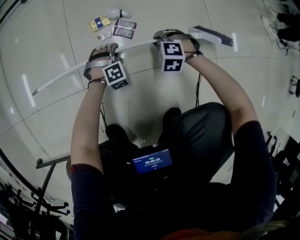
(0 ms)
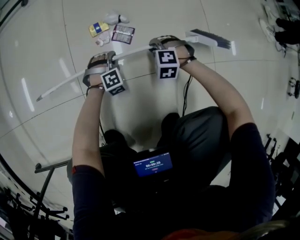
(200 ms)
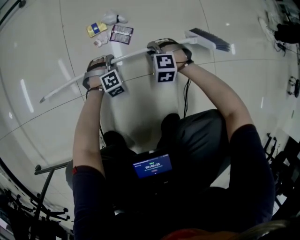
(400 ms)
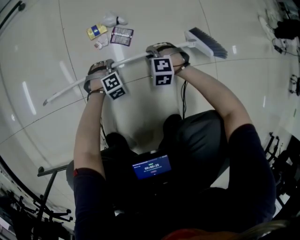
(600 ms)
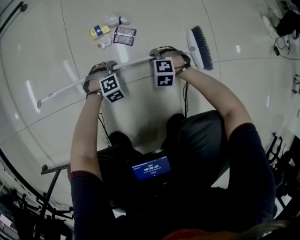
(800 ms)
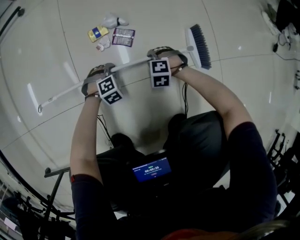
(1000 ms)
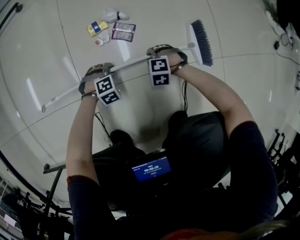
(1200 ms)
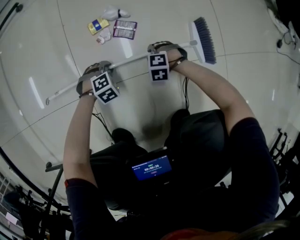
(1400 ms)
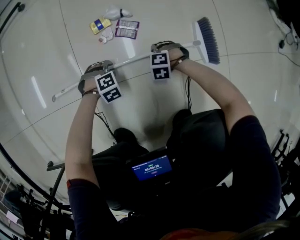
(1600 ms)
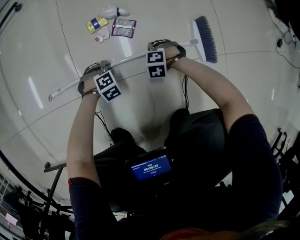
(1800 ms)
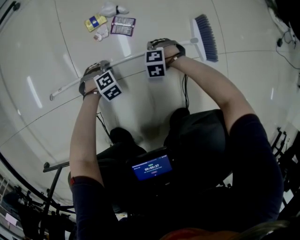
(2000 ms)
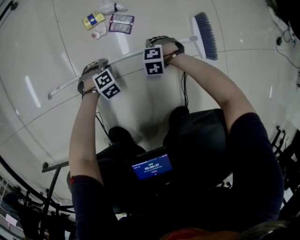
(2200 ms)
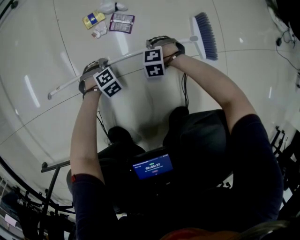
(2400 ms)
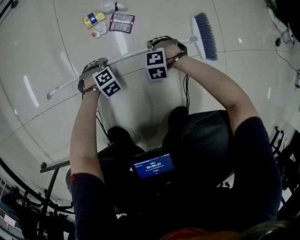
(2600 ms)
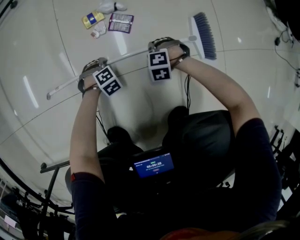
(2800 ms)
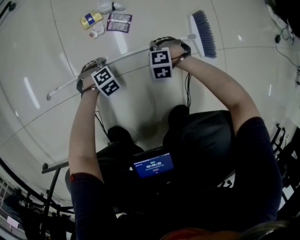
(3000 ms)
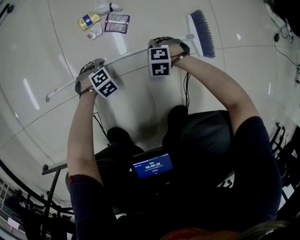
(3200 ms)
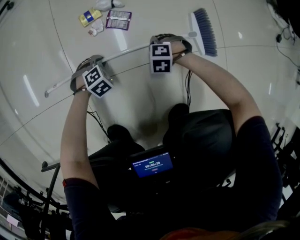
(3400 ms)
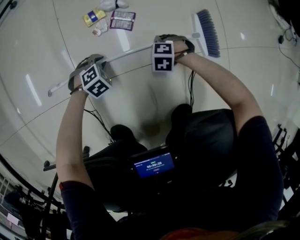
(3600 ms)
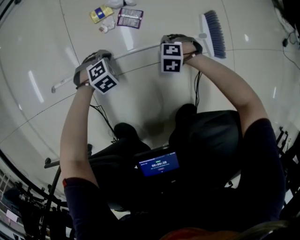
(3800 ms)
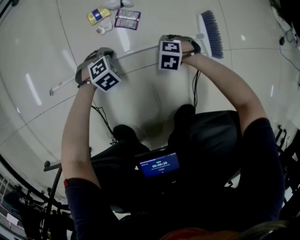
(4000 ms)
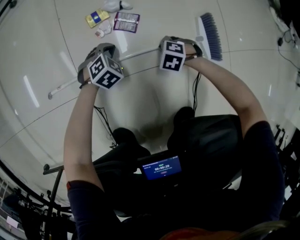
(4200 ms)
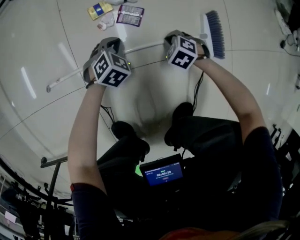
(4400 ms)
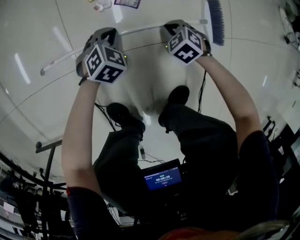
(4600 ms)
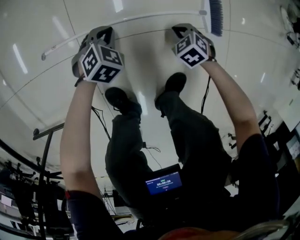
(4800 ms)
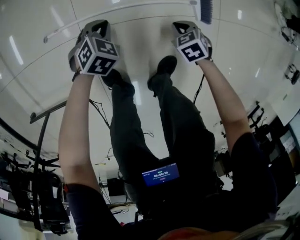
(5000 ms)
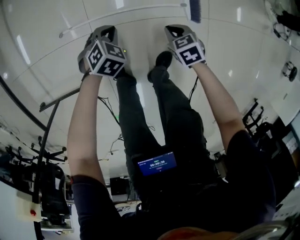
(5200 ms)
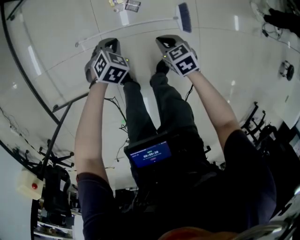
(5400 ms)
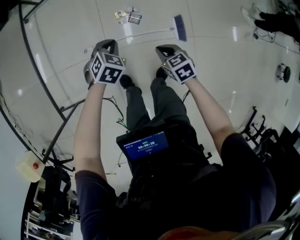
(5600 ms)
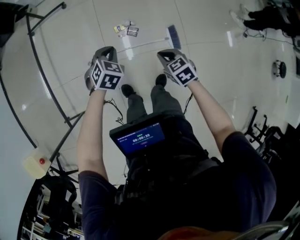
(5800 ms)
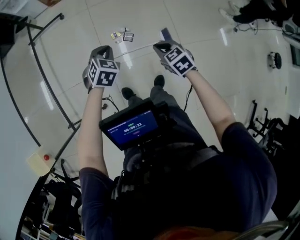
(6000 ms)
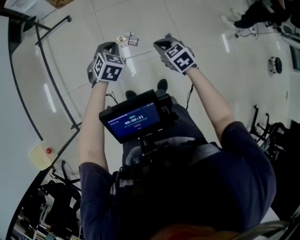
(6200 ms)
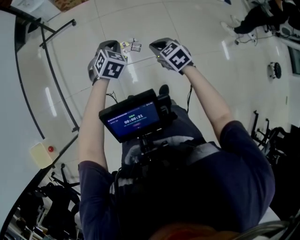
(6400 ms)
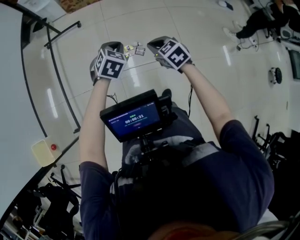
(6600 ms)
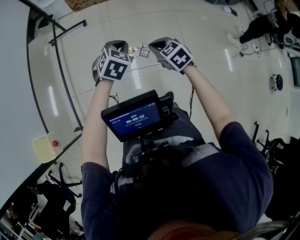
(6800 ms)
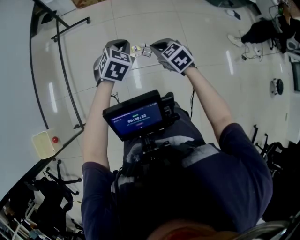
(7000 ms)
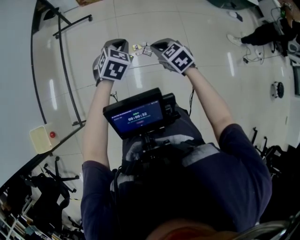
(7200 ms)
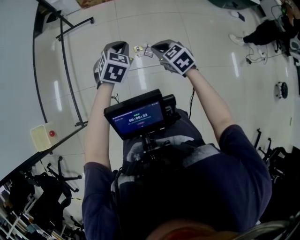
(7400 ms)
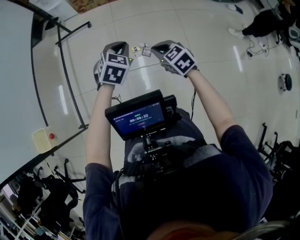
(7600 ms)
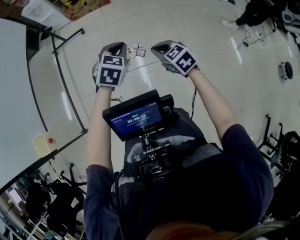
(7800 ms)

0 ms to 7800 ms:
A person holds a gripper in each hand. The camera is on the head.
0 ms to 1600 ms: The right gripper travels downward by some 10 cm. Meanwhile the left gripper changes place by roughly 10 cm, and changes its angle by approximately 20 degrees.
1600 ms to 3200 ms: There are only small adjustments of the grippers.
3200 ms to 4600 ms: The left gripper is displaced upward by about 10 cm, and swivels about 30 degrees. Meanwhile the right gripper moves some 5 cm, and swivels some 30 degrees.
4600 ms to 6200 ms: Both grippers move upward, approximately 70 cm. The right gripper swivels approximately 30 degrees.
6200 ms to 7800 ms: The right gripper moves upward and backward, roughly 15 cm, and goes to the left and returns, roughly 10 cm each way. The left gripper swings up and down, about 15 cm each way, with 2 reversals.

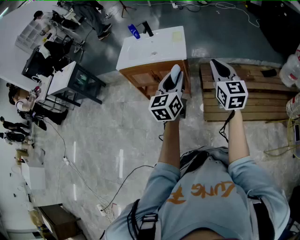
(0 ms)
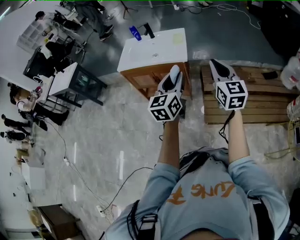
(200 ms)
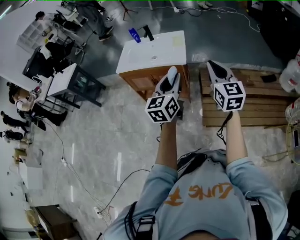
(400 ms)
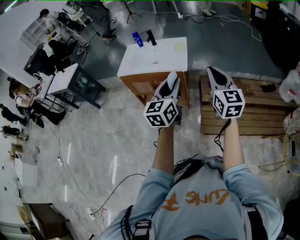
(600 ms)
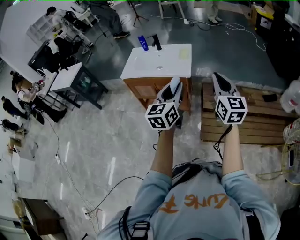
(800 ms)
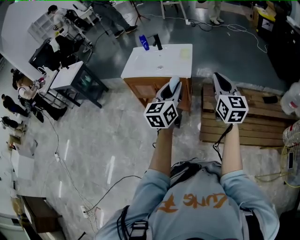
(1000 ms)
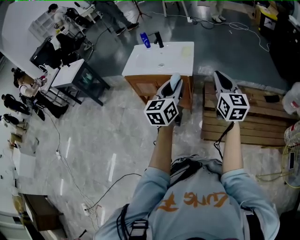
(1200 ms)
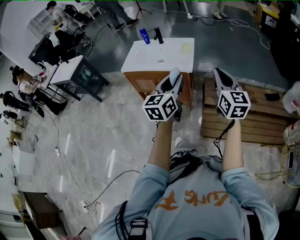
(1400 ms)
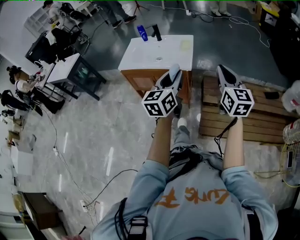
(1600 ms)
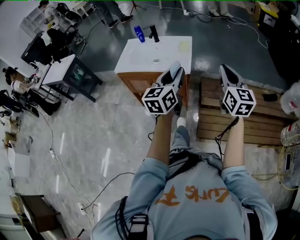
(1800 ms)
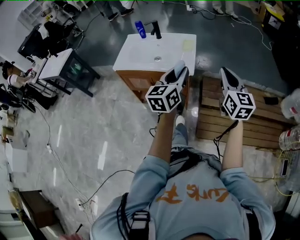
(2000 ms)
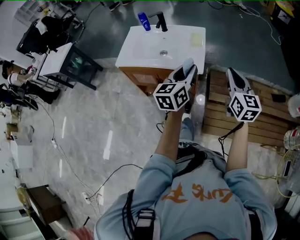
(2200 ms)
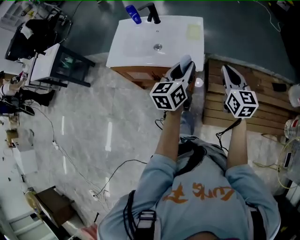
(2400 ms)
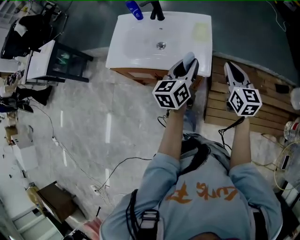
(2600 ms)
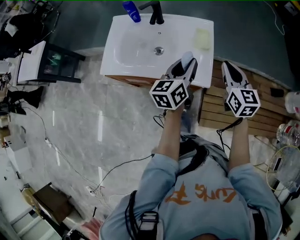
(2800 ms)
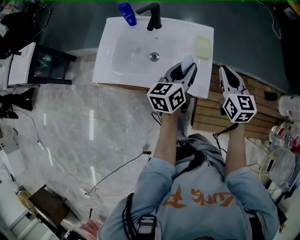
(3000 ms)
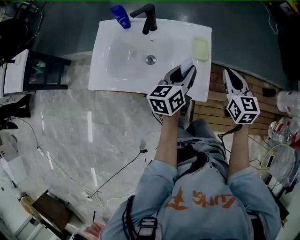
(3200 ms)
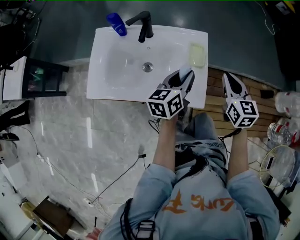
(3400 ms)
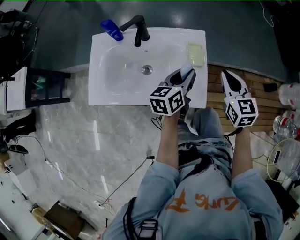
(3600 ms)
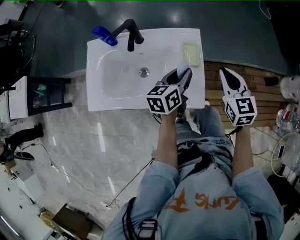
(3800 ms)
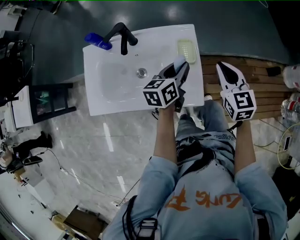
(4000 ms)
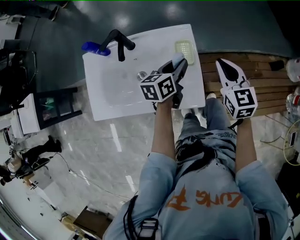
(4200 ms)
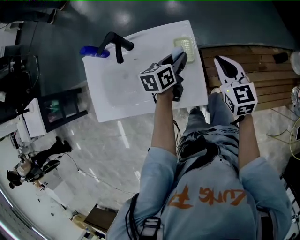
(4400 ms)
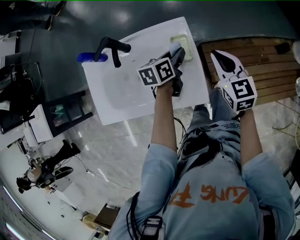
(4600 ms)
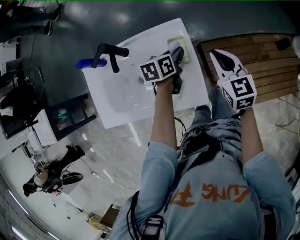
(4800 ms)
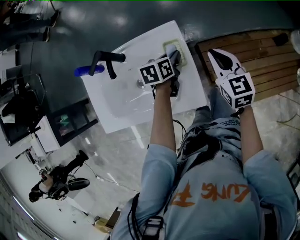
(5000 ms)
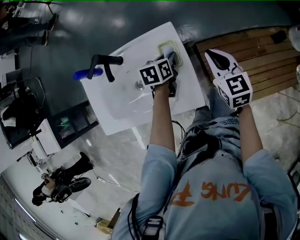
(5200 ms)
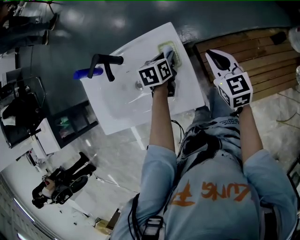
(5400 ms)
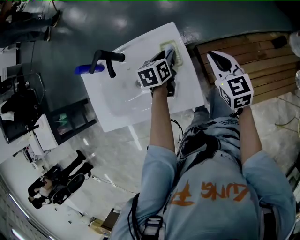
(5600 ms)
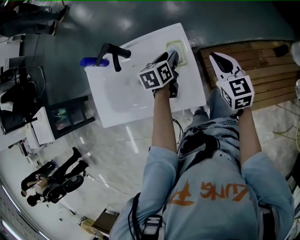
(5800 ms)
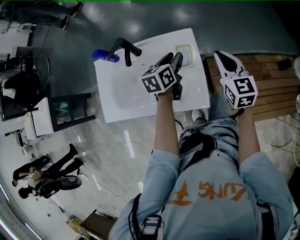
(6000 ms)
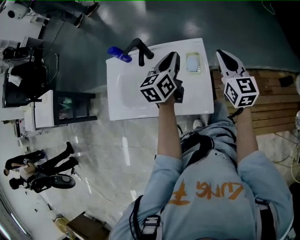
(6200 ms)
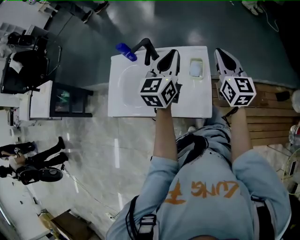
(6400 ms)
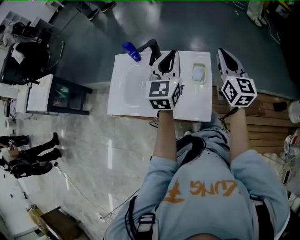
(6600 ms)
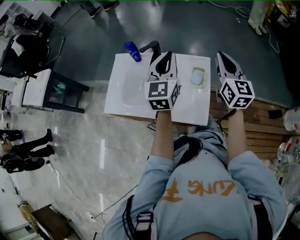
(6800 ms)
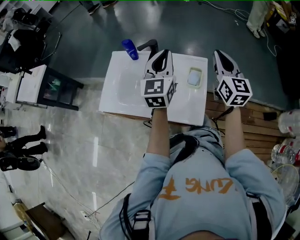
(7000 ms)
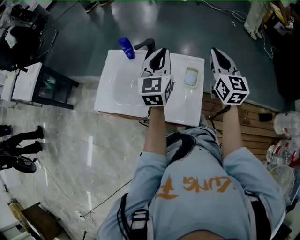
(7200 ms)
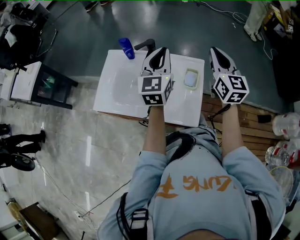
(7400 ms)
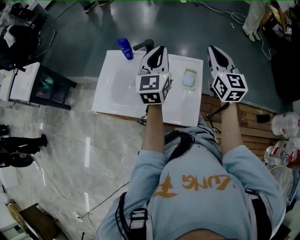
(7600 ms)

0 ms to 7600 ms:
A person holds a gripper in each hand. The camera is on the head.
0 ms to 1600 ms: Both grippers move forward, approximately 5 cm.
1600 ms to 3000 ms: The pair of grippers is taken forward, about 40 cm. The left gripper rotates roughly 30 degrees, while the right gripper swivels about 20 degrees.
3000 ms to 4600 ms: The left gripper shifts approximately 20 cm forward and downward, and swivels approximately 30 degrees. Meanwhile the right gripper goes some 10 cm forward and downward.
4600 ms to 6000 ms: The left gripper shifts roughly 5 cm upward.
6000 ms to 7600 ms: The left gripper heads upward and to the left, covering roughly 20 cm, rotates about 50 degrees, and closes its fingers. The right gripper heads upward, to the left and forward, covering roughly 20 cm, and turns by about 20 degrees.

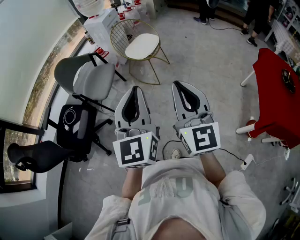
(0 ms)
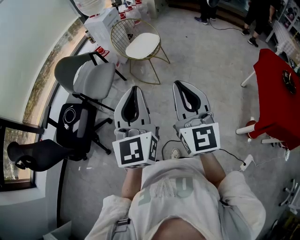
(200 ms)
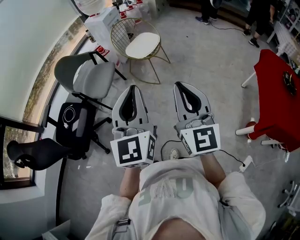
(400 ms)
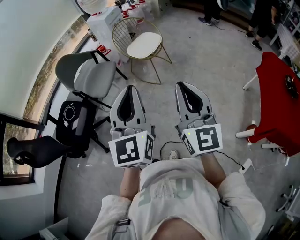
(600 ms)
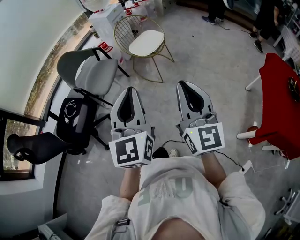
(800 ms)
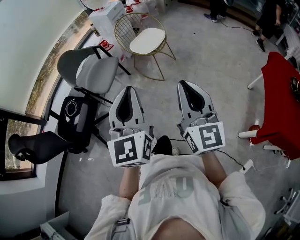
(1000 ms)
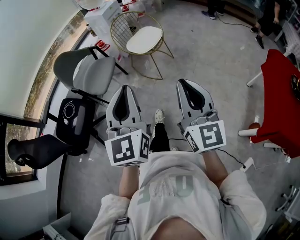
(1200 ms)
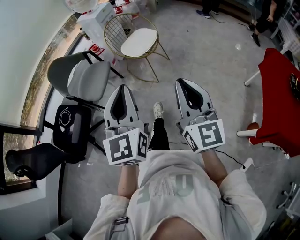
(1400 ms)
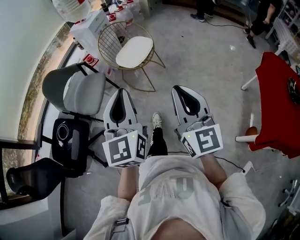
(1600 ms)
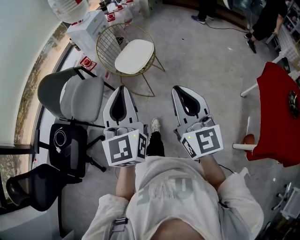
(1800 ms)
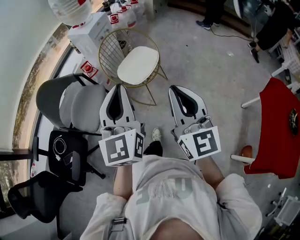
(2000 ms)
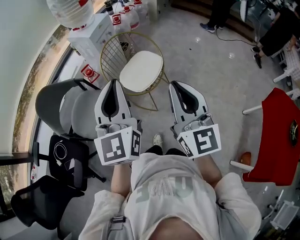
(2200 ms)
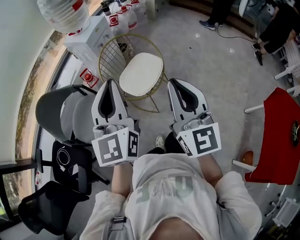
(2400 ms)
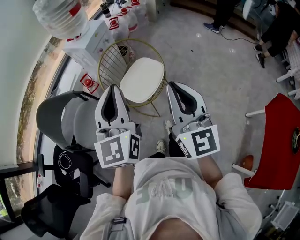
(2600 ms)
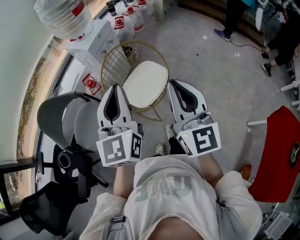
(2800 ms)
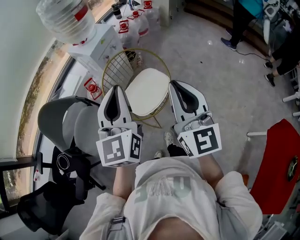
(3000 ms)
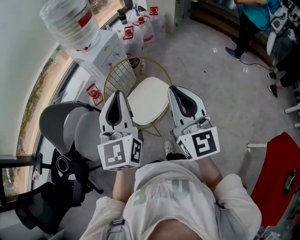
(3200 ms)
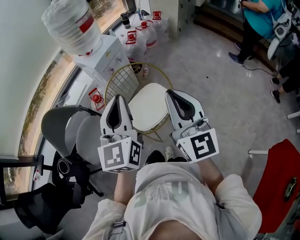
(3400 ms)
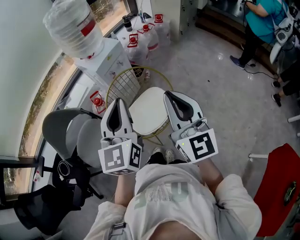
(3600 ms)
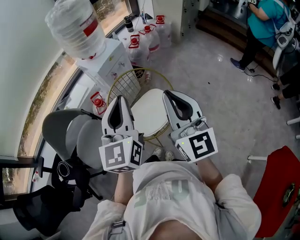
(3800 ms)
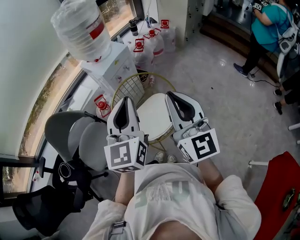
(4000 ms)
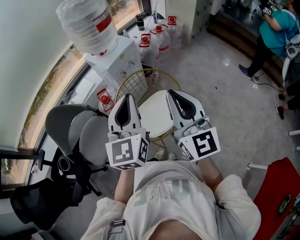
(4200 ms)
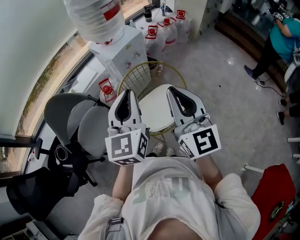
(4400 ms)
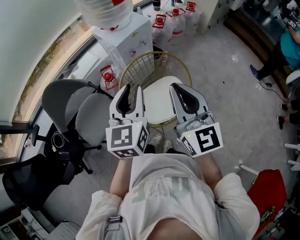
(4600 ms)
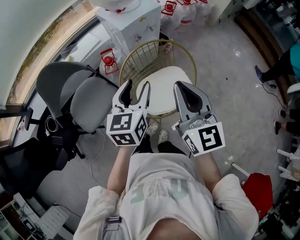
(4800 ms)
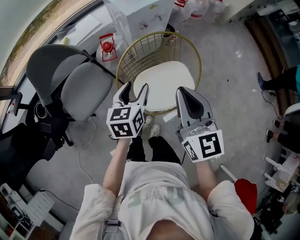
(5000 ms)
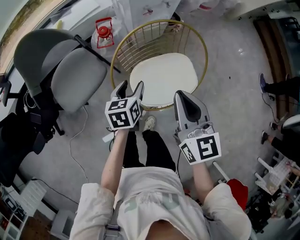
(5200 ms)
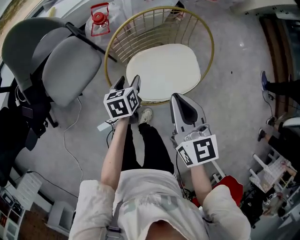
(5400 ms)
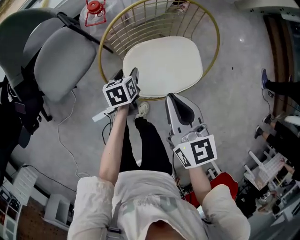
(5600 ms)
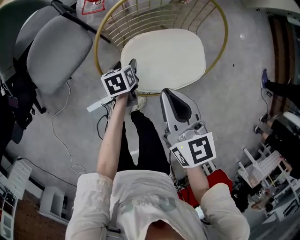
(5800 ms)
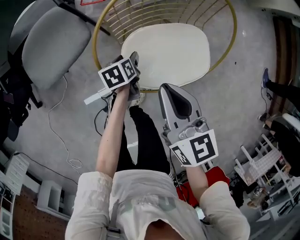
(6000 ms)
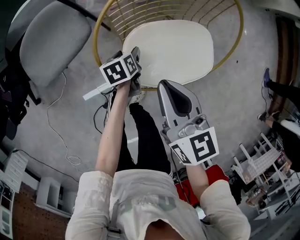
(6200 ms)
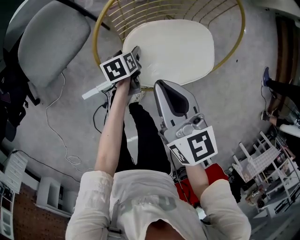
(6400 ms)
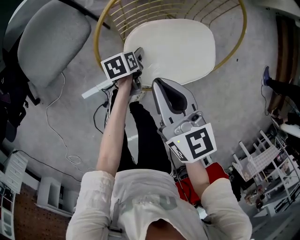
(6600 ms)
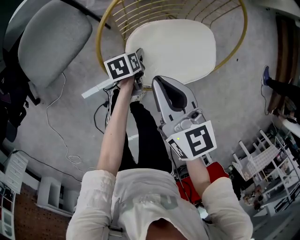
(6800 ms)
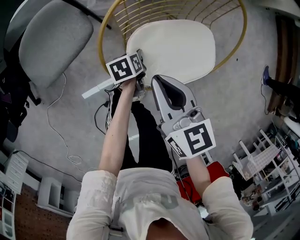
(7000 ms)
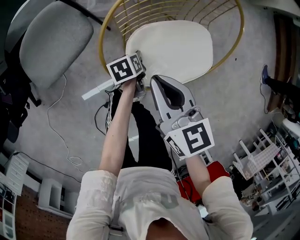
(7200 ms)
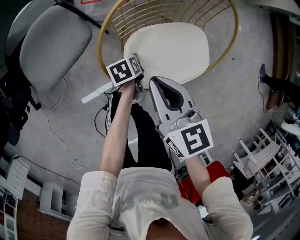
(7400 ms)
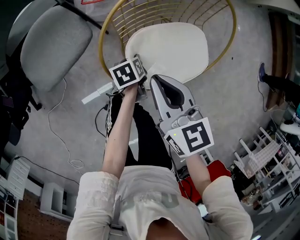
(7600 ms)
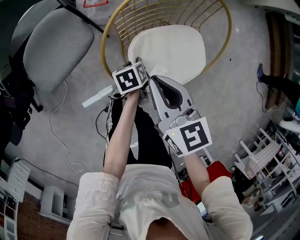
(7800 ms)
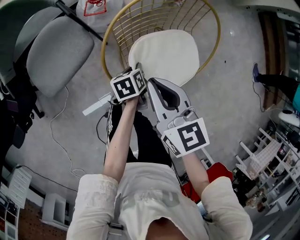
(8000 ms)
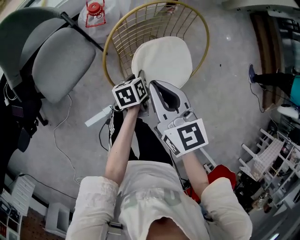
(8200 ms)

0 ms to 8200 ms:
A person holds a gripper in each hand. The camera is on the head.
0 ms to 1600 ms: The right gripper is displaced forward and to the right by some 15 cm. Meanwhile the left gripper is displaced forward by approximately 20 cm.
1600 ms to 3200 ms: Both grippers are carried forward, roughly 50 cm.
3200 ms to 5000 ms: The left gripper is displaced downward and forward by about 30 cm, tilts its fingers approximately 40 degrees downward, and opens; the right gripper heads forward, downward and to the left, covering roughly 25 cm, and rotates some 30 degrees.
5000 ms to 6600 ms: The right gripper goes some 25 cm downward, and changes its angle by roughly 30 degrees. Meanwhile the left gripper shifts some 40 cm downward, and turns by approximately 50 degrees.
6600 ms to 8200 ms: The two grippers go roughly 15 cm upward. The left gripper closes.
